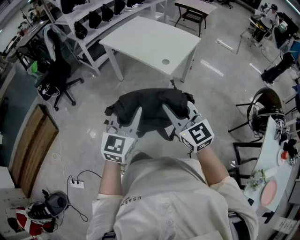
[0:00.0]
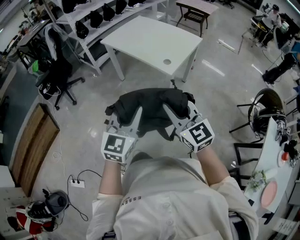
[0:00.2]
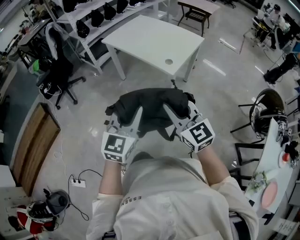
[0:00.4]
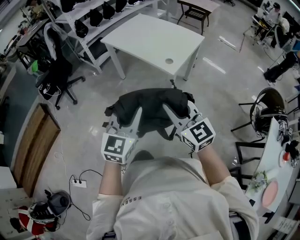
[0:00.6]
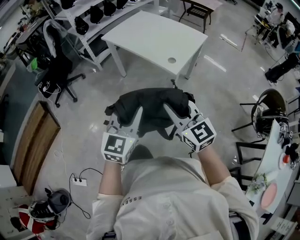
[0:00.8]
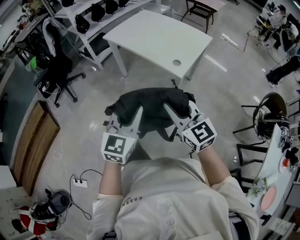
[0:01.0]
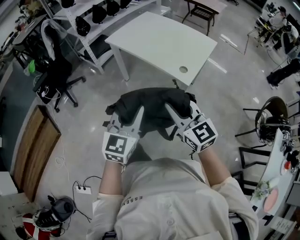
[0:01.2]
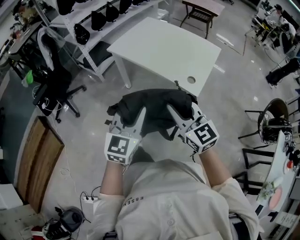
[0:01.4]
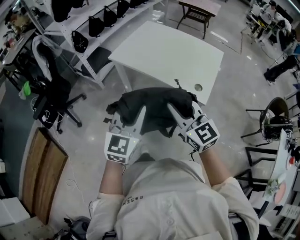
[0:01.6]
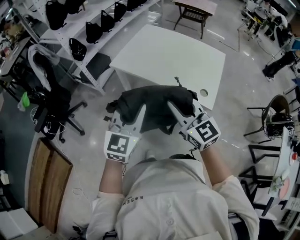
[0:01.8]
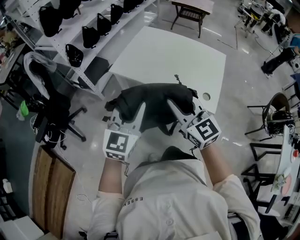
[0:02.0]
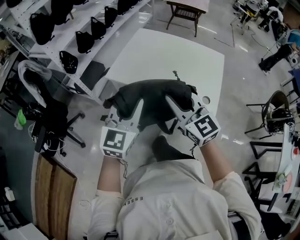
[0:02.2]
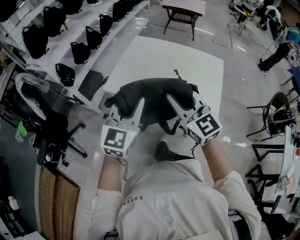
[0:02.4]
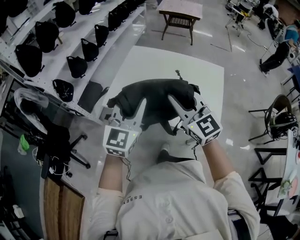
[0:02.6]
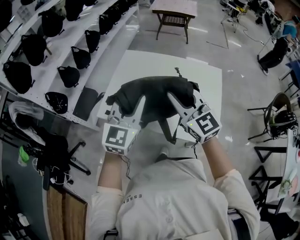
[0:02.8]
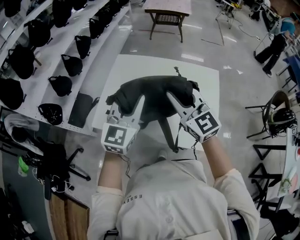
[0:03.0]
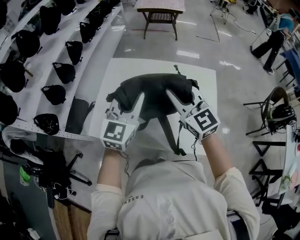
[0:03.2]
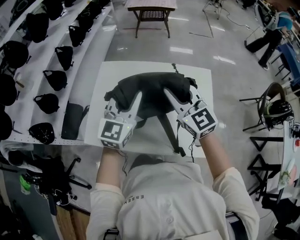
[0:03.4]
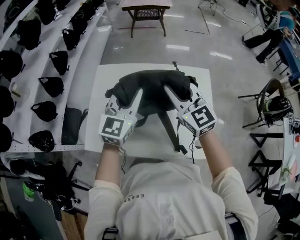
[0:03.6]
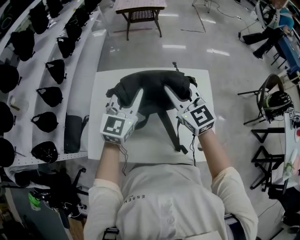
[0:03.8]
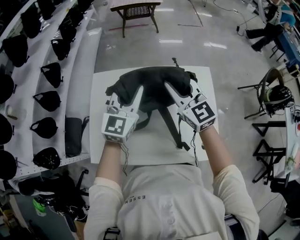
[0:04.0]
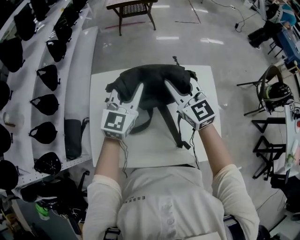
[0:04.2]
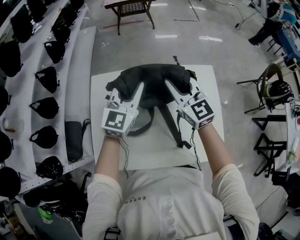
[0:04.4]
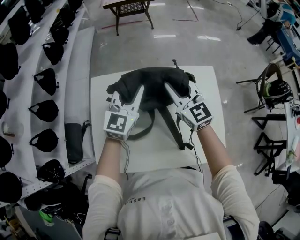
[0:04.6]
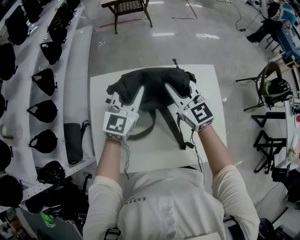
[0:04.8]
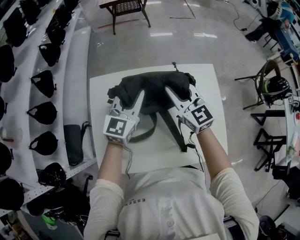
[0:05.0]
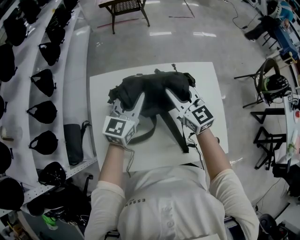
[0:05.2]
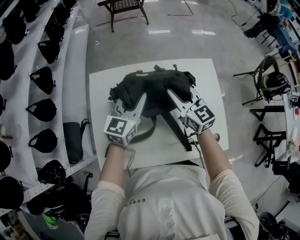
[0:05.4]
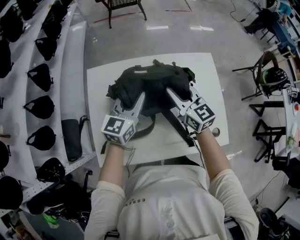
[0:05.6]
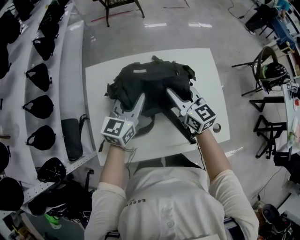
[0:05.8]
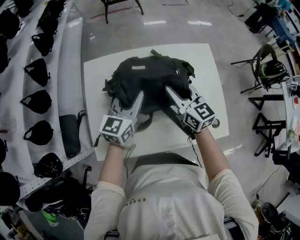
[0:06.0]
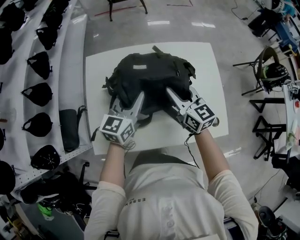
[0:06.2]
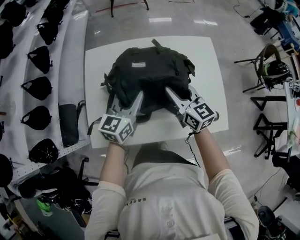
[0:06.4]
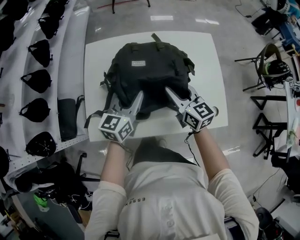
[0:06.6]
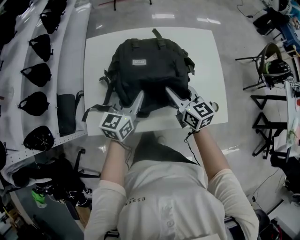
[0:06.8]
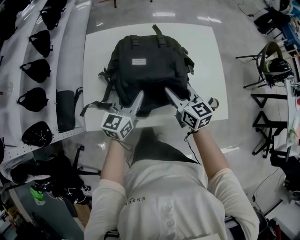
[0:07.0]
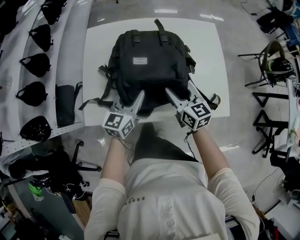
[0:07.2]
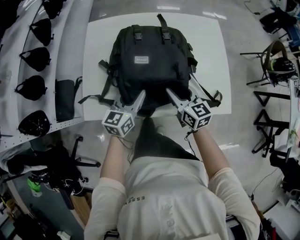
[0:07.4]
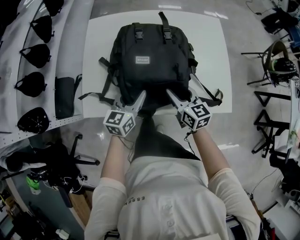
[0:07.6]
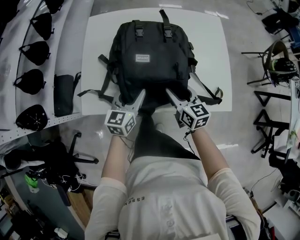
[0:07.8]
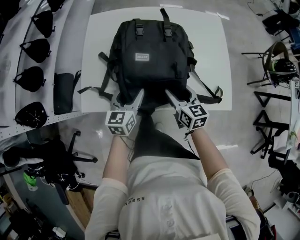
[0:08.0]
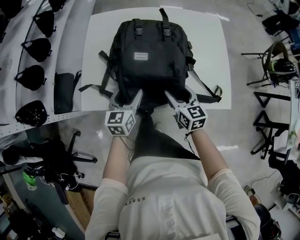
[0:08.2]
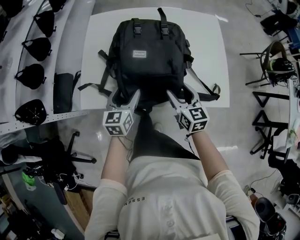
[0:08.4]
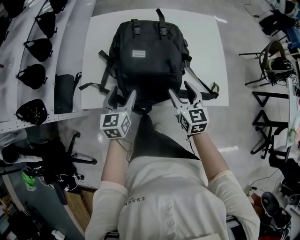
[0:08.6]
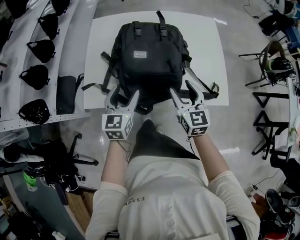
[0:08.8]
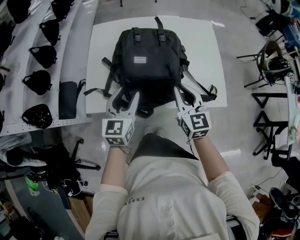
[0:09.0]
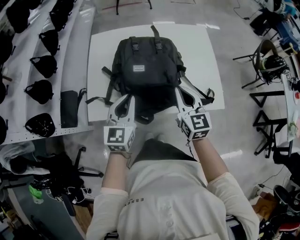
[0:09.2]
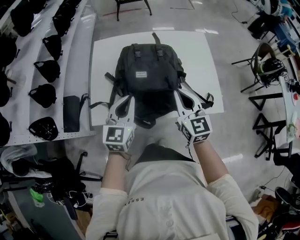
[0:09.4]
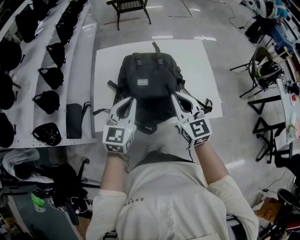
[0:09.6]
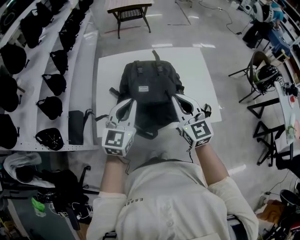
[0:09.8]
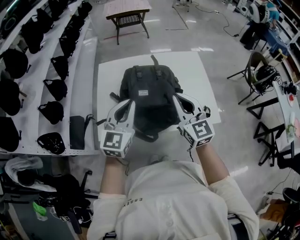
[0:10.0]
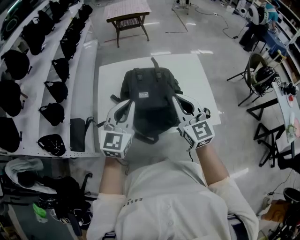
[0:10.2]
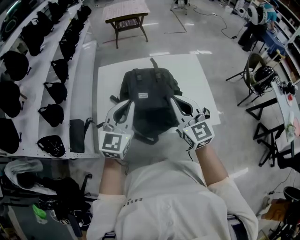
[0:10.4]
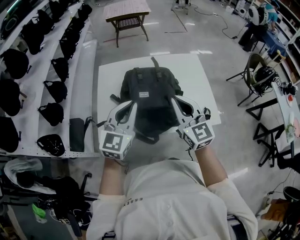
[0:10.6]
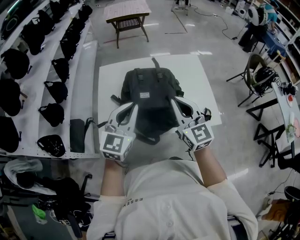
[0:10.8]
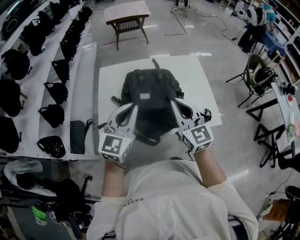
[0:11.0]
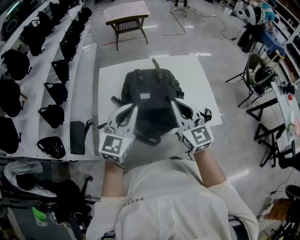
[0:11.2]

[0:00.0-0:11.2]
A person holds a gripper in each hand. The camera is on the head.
0:00.0 to 0:01.6: Both grippers move forward and to the left, approximately 35 cm.
0:01.6 to 0:03.2: The two grippers travel together, forward, some 50 cm. The left gripper swivels approximately 20 degrees, while the right gripper turns by some 20 degrees.
0:03.2 to 0:04.8: The two grippers go about 20 cm forward.
0:04.8 to 0:06.4: Both grippers travel together backward and downward, approximately 15 cm. The left gripper swivels approximately 20 degrees. The right gripper turns by roughly 20 degrees.
0:06.4 to 0:08.0: Both grippers move backward and downward, some 20 cm. The right gripper opens. The left gripper opens.
0:08.0 to 0:09.6: Both grippers move upward, roughly 20 cm. The right gripper turns by some 30 degrees, and closes up. The left gripper rotates about 20 degrees, and closes.
0:09.6 to 0:11.2: Both grippers move upward, about 5 cm.

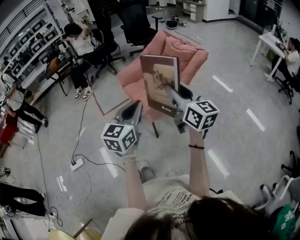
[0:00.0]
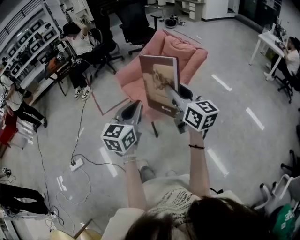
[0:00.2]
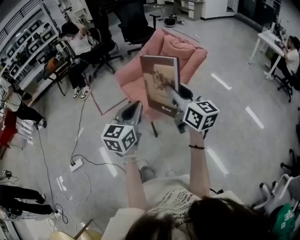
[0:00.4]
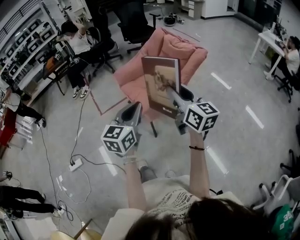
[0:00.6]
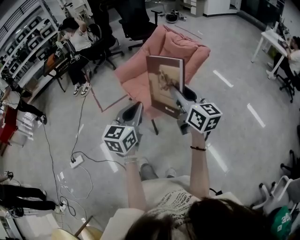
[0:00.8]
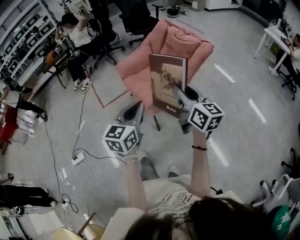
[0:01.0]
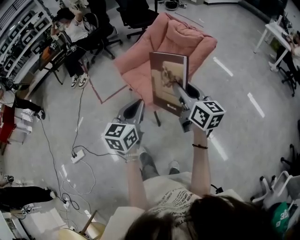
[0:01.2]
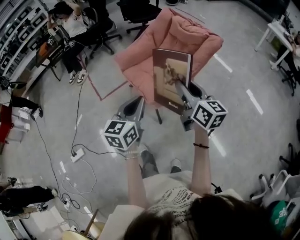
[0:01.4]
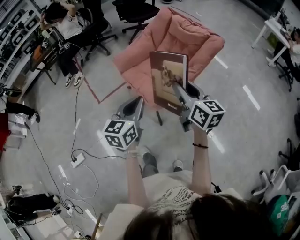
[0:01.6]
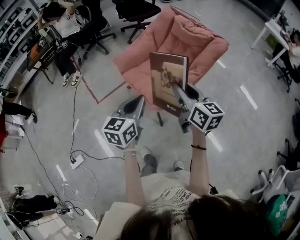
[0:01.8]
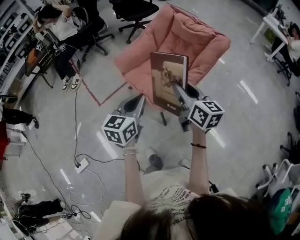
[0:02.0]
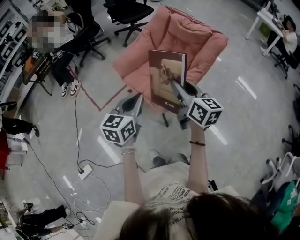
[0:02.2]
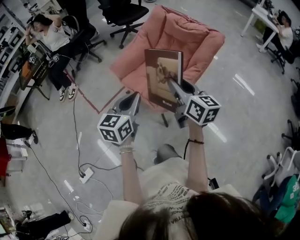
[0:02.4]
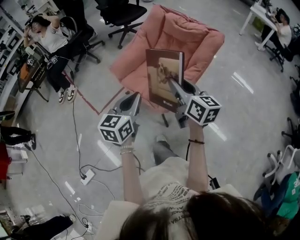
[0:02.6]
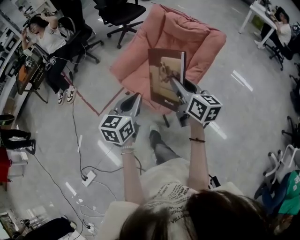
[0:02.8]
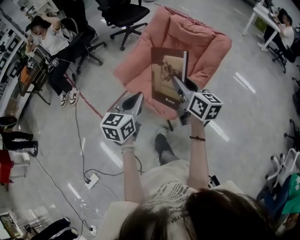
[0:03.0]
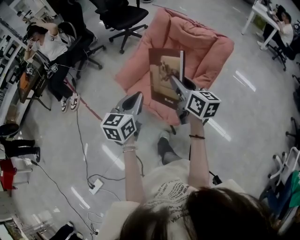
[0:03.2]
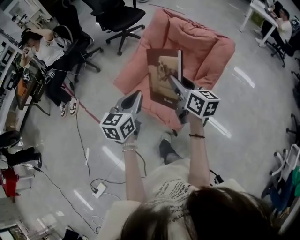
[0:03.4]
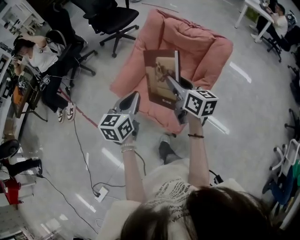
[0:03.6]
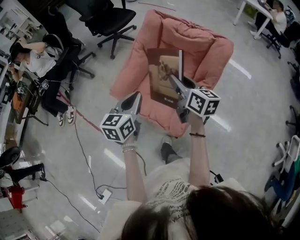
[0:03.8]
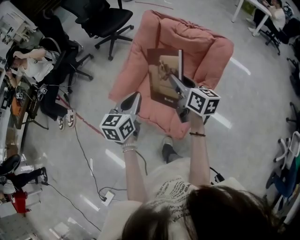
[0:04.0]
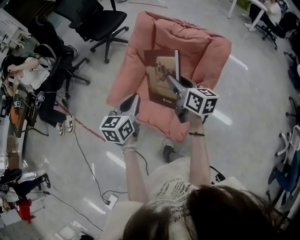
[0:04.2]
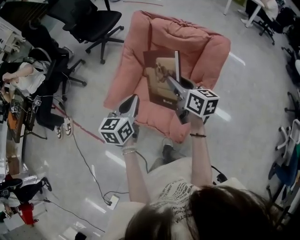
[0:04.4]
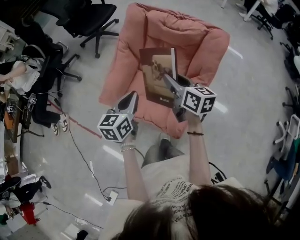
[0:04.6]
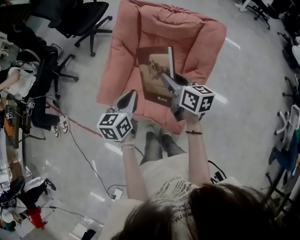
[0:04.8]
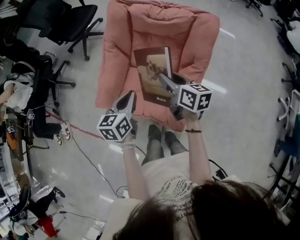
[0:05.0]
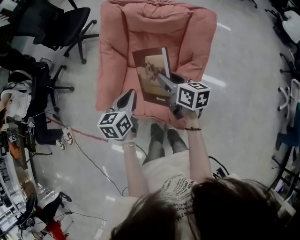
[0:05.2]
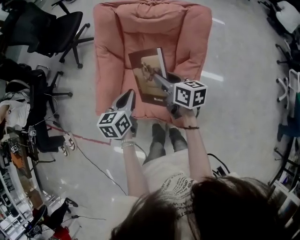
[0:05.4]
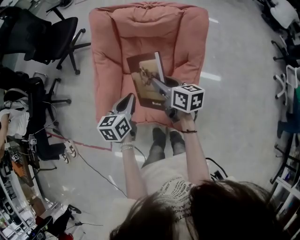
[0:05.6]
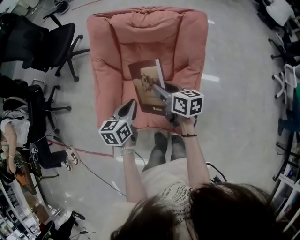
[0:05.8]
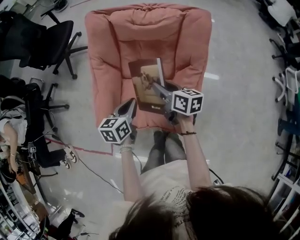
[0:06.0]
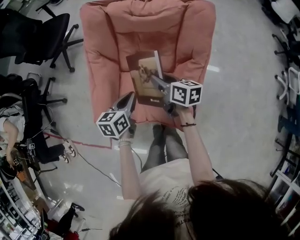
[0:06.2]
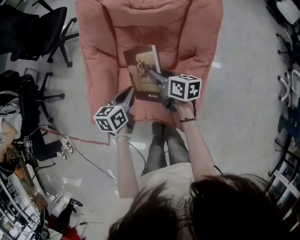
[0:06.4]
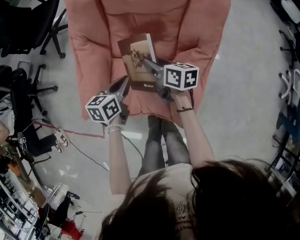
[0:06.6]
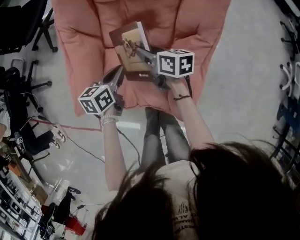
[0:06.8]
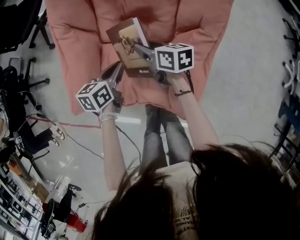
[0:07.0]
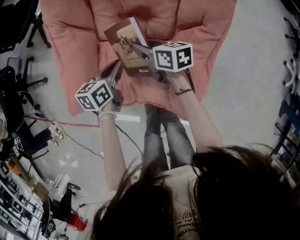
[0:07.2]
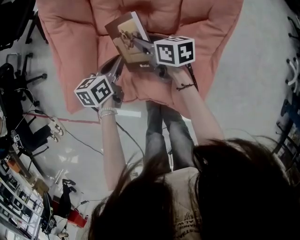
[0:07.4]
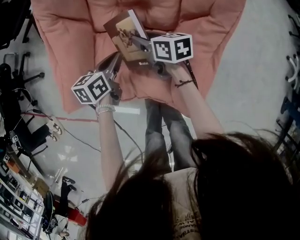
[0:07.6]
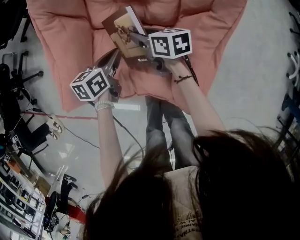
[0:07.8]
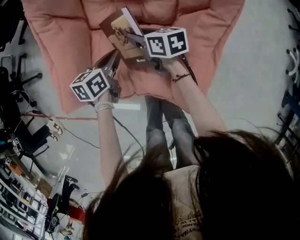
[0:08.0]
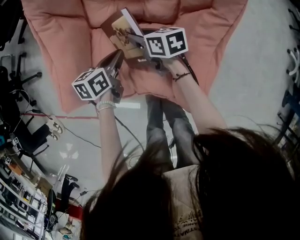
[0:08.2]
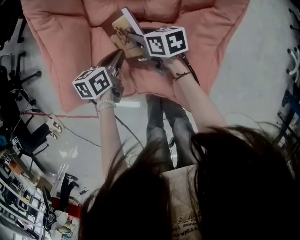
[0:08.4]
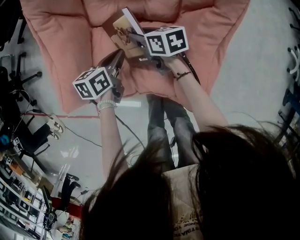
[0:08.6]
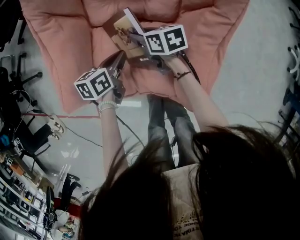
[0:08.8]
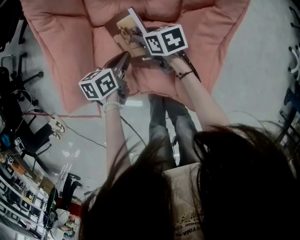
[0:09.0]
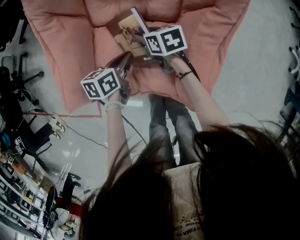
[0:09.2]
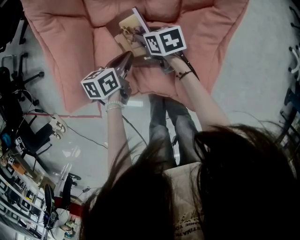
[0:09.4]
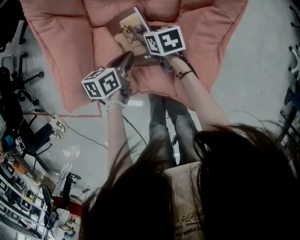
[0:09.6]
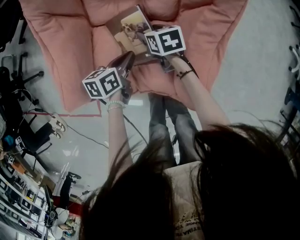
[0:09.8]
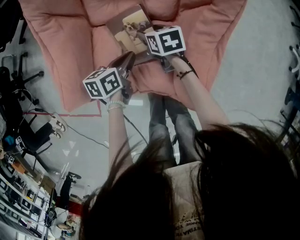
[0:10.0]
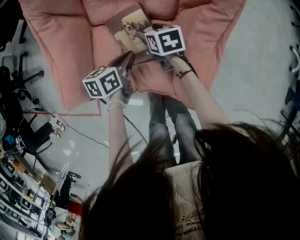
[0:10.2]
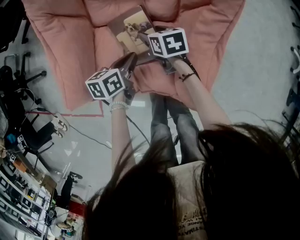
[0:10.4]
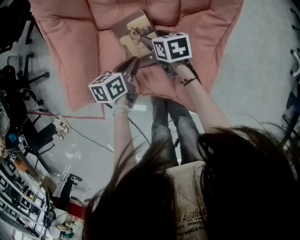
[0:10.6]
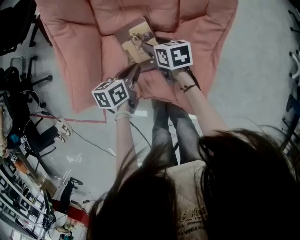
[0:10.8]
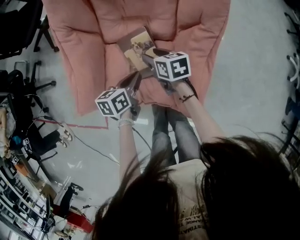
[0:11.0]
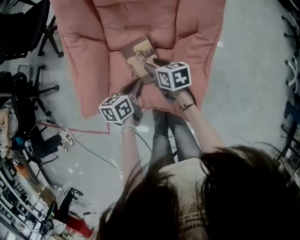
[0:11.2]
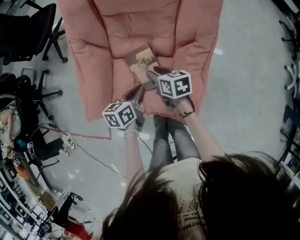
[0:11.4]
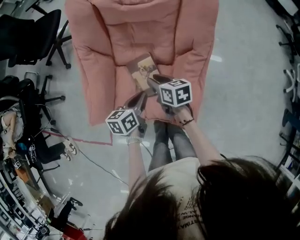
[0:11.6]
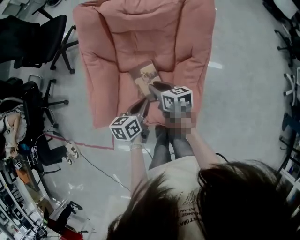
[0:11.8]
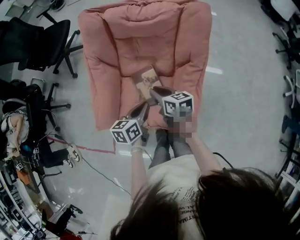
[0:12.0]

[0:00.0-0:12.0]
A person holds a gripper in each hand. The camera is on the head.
0:00.0 to 0:01.6: The right gripper shifts about 20 cm forward, downward and to the left. Meanwhile the left gripper goes approximately 20 cm forward, to the left and downward.
0:01.6 to 0:03.0: Both grippers move forward and to the left, about 20 cm.
0:03.0 to 0:04.4: Both grippers move forward, about 25 cm.
0:04.4 to 0:06.0: The grippers both shift downward and forward by some 20 cm. The left gripper swivels approximately 30 degrees. Meanwhile the right gripper swivels some 20 degrees.
0:06.0 to 0:07.6: Both grippers move downward, roughly 25 cm.
0:07.6 to 0:09.0: The left gripper moves roughly 5 cm.
0:09.0 to 0:10.4: The grippers stay close to where they were, moving slightly.
0:10.4 to 0:12.0: Both grippers travel together upward, roughly 20 cm. The right gripper turns by some 20 degrees, and closes up.

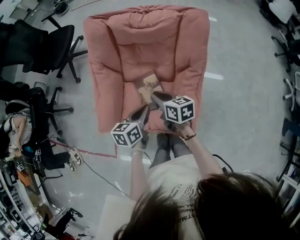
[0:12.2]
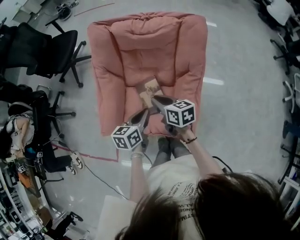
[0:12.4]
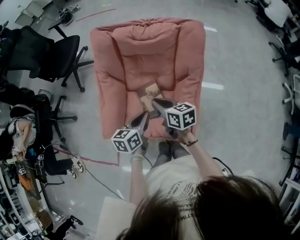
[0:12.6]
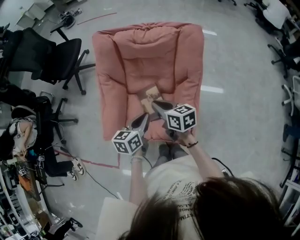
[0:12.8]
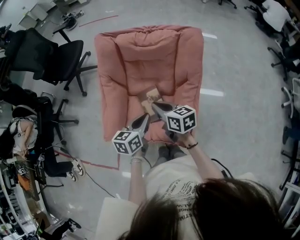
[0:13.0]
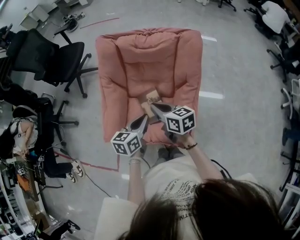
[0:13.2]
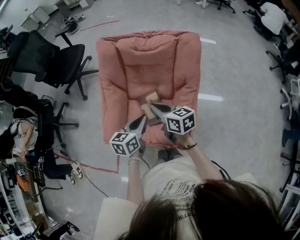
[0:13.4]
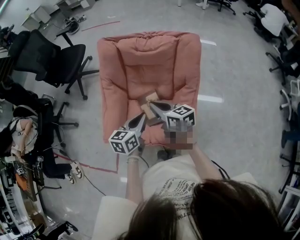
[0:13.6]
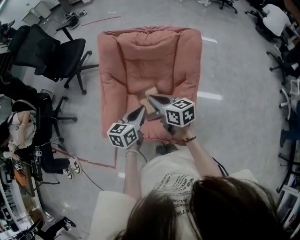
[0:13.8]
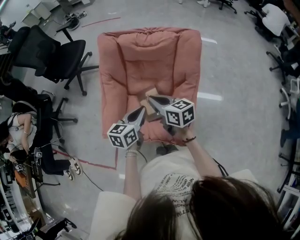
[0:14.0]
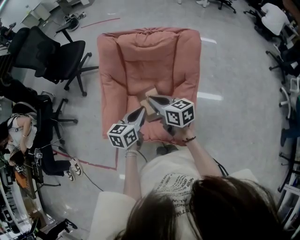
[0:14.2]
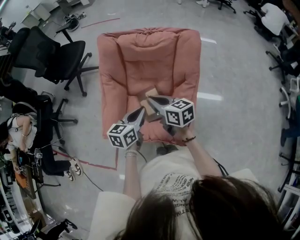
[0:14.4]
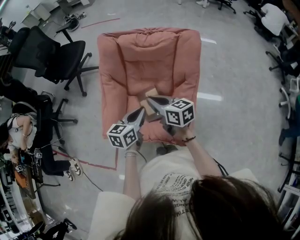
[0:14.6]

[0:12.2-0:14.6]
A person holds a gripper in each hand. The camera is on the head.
0:12.2 to 0:13.4: Both grippers travel together upward, some 10 cm.
0:13.4 to 0:14.6: There are only small adjustments of the grippers.
